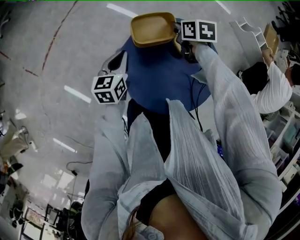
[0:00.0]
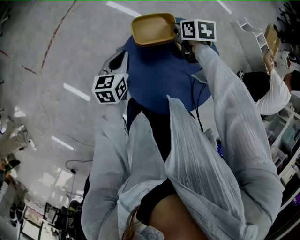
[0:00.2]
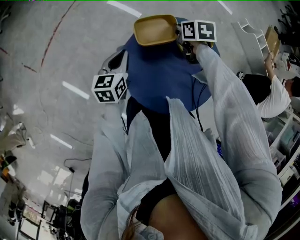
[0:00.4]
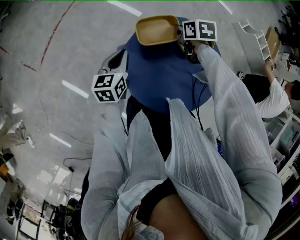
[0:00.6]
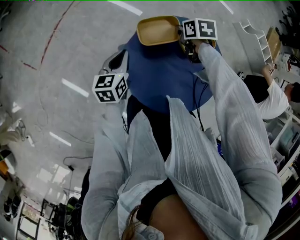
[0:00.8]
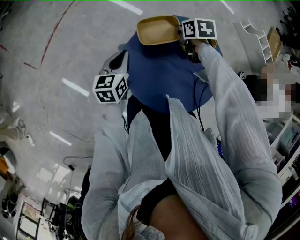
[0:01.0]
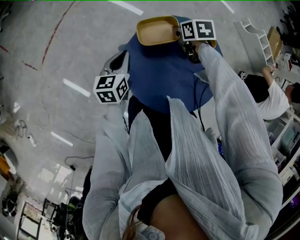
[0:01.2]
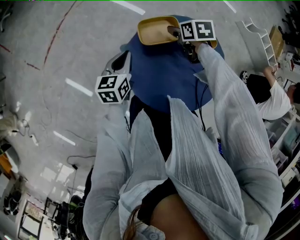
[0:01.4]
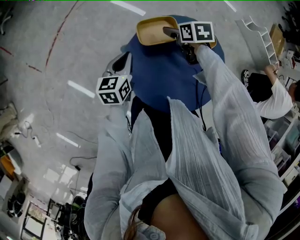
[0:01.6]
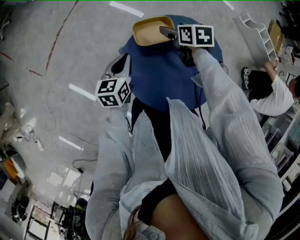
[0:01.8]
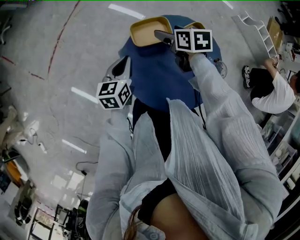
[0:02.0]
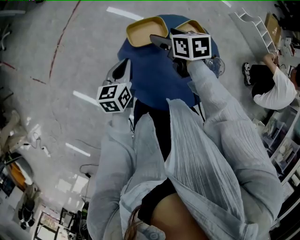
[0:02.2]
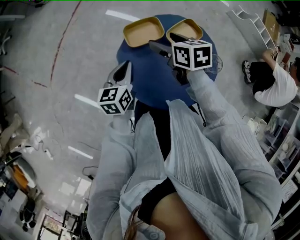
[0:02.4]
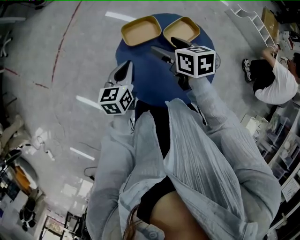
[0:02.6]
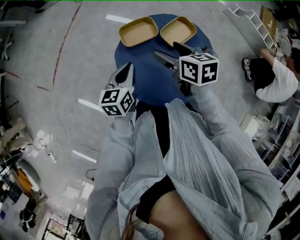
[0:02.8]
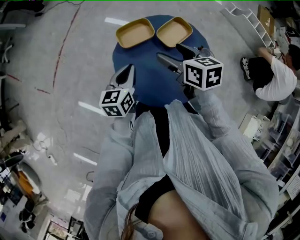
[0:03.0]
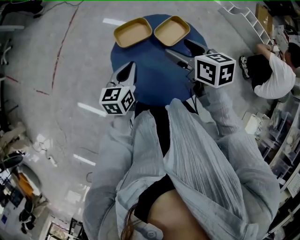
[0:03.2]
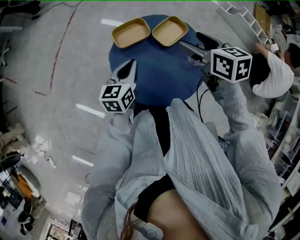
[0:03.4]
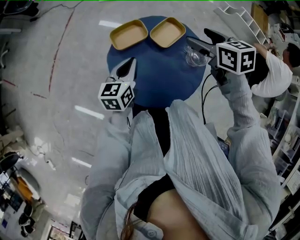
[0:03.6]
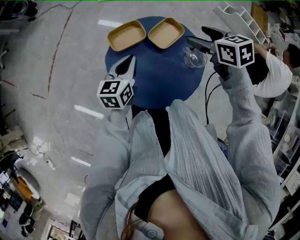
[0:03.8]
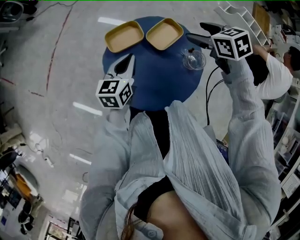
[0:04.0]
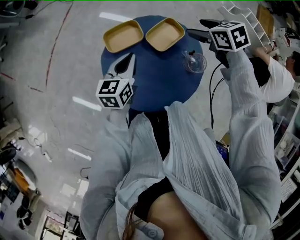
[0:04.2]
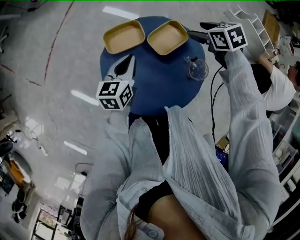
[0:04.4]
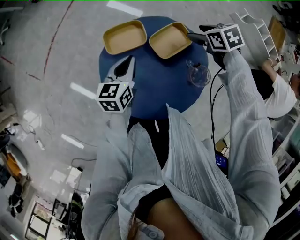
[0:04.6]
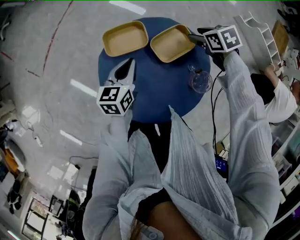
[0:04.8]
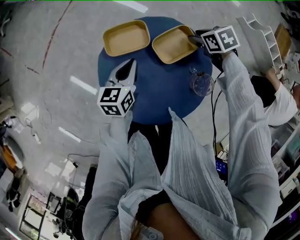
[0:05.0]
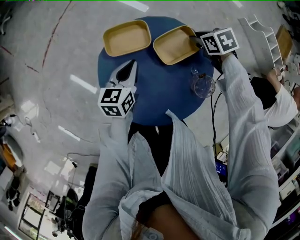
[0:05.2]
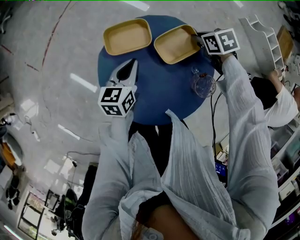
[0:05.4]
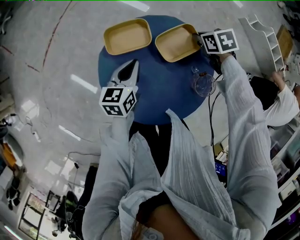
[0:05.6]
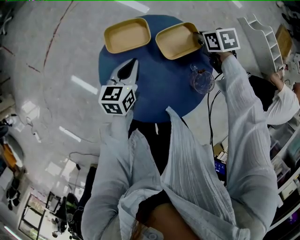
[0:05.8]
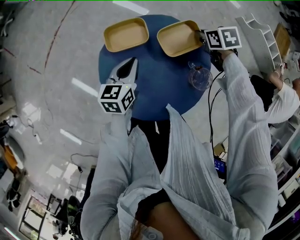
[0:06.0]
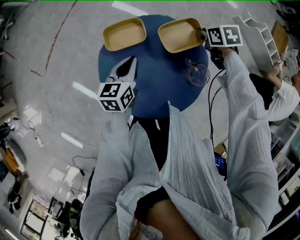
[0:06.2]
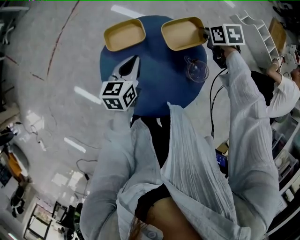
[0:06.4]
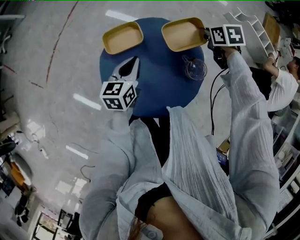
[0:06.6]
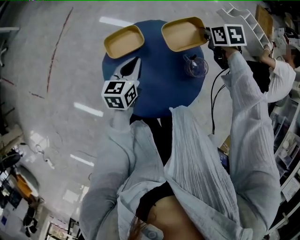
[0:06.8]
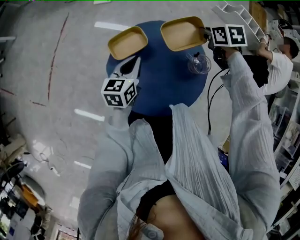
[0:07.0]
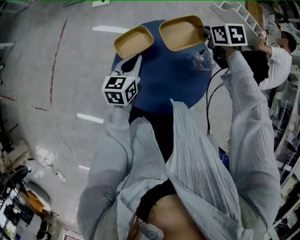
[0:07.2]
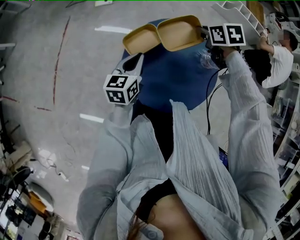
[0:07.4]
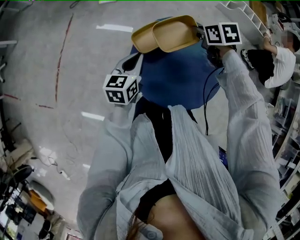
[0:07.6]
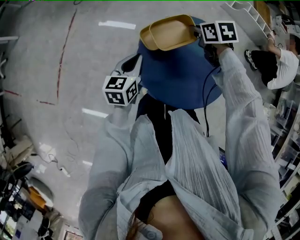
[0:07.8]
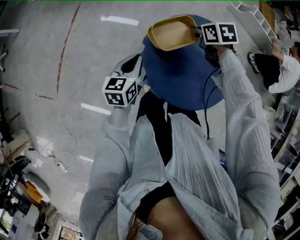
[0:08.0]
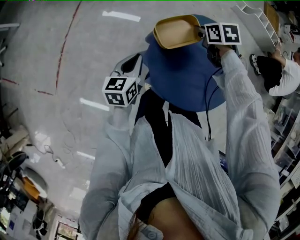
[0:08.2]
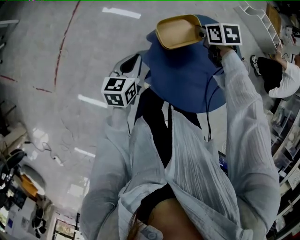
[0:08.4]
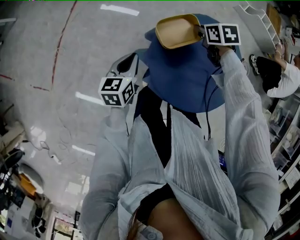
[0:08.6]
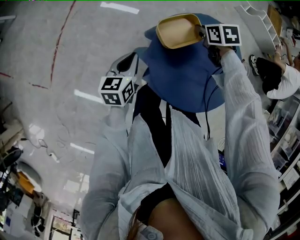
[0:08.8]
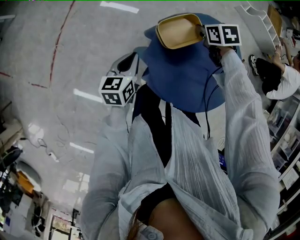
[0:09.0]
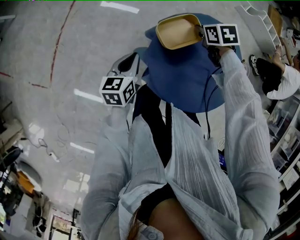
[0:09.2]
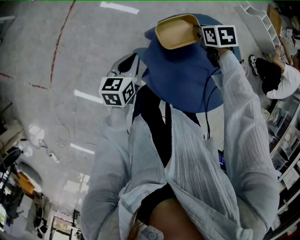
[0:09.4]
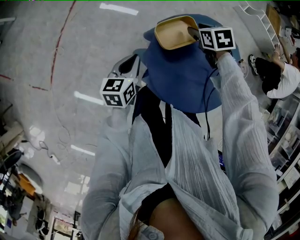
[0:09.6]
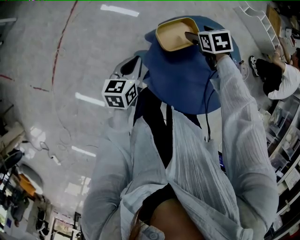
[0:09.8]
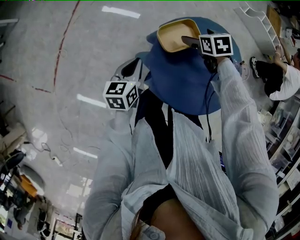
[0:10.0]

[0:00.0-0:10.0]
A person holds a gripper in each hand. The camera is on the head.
0:00.0 to 0:01.4: The right gripper opens.
0:01.4 to 0:02.8: The left gripper goes about 10 cm backward and to the right. Meanwhile the right gripper shifts approximately 20 cm backward and upward, and swivels roughly 30 degrees.
0:02.8 to 0:04.2: The left gripper moves to the right, about 10 cm, while the right gripper goes about 20 cm to the right and forward, and turns by approximately 30 degrees.
0:04.2 to 0:05.8: The left gripper moves downward, some 5 cm. Meanwhile the right gripper moves downward, about 15 cm, and closes.
0:05.8 to 0:07.2: The left gripper shifts by roughly 5 cm, and swivels some 20 degrees. Meanwhile the right gripper shifts about 10 cm upward, and turns by approximately 20 degrees.
0:07.2 to 0:08.6: The left gripper is displaced to the left by about 15 cm. The right gripper moves to the left and downward, roughly 20 cm.
0:08.6 to 0:10.0: The right gripper opens up.

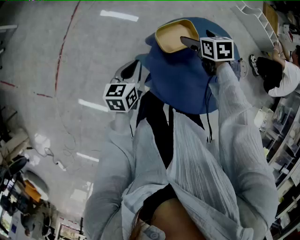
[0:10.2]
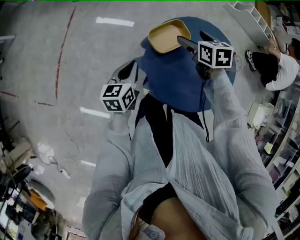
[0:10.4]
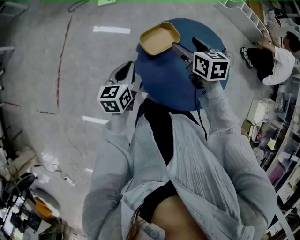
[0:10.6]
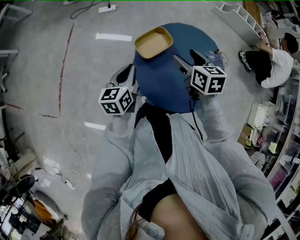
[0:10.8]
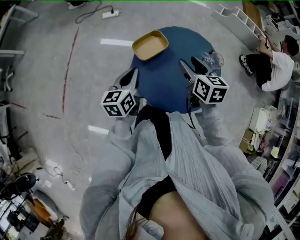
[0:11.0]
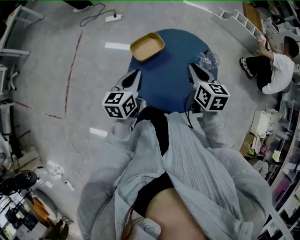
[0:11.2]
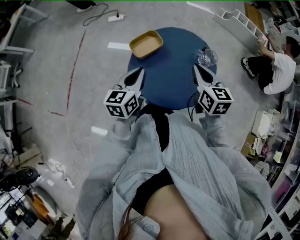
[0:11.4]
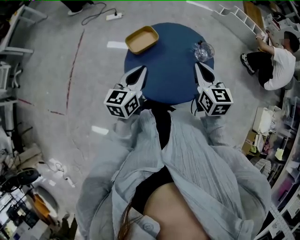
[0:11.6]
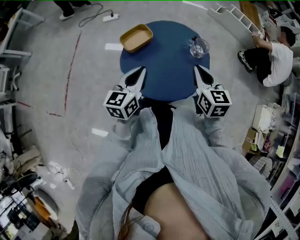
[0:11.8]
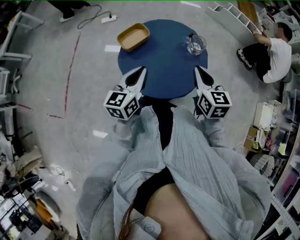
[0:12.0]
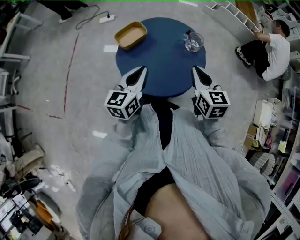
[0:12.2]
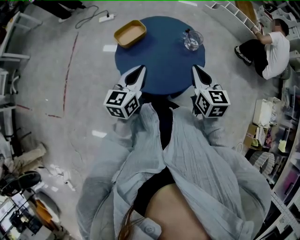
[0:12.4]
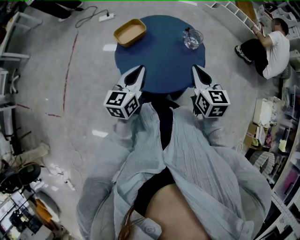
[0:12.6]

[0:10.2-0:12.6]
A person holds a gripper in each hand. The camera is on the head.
0:10.2 to 0:11.4: The left gripper goes roughly 20 cm to the right and upward. The right gripper moves backward, upward and to the right, approximately 25 cm, points its fingers approximately 30 degrees further upward, and closes up.
0:11.4 to 0:12.6: The left gripper heads to the right and backward, covering roughly 10 cm, while the right gripper moves backward and to the right, roughly 10 cm.

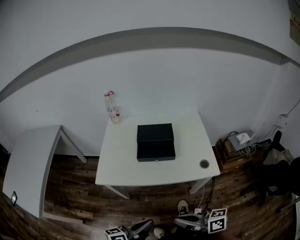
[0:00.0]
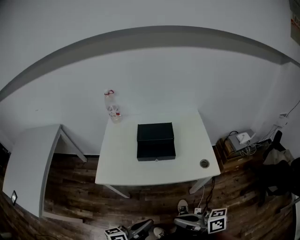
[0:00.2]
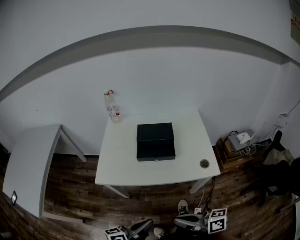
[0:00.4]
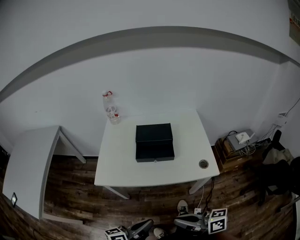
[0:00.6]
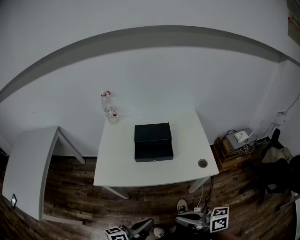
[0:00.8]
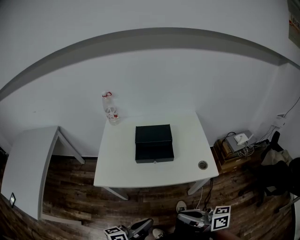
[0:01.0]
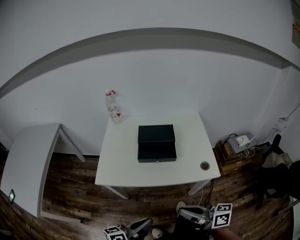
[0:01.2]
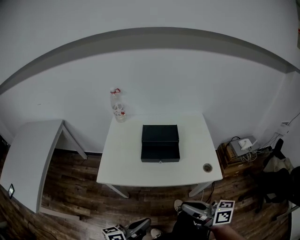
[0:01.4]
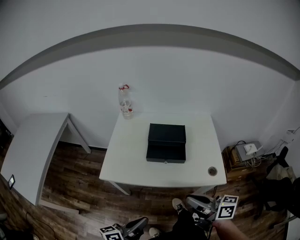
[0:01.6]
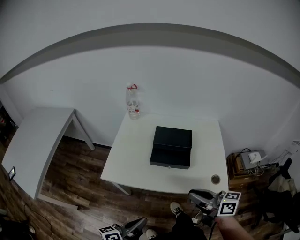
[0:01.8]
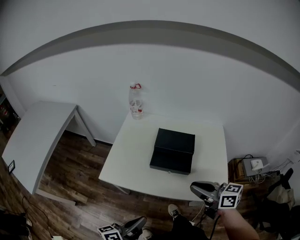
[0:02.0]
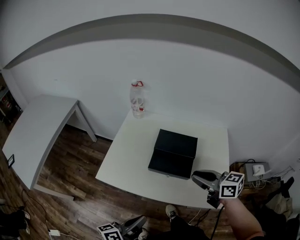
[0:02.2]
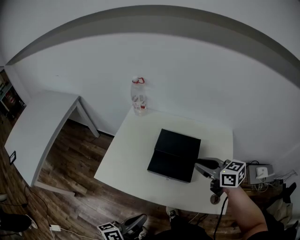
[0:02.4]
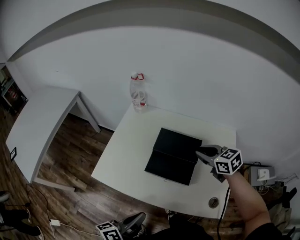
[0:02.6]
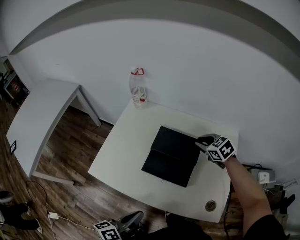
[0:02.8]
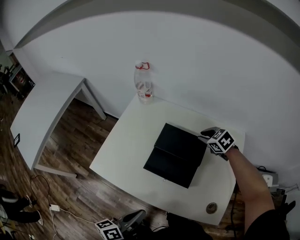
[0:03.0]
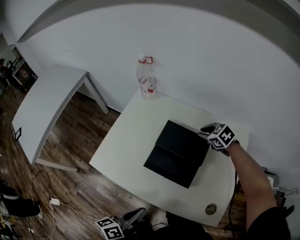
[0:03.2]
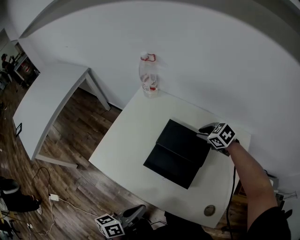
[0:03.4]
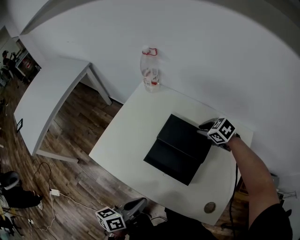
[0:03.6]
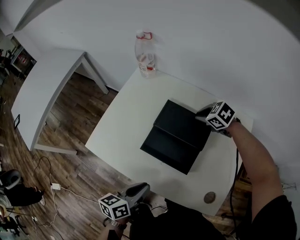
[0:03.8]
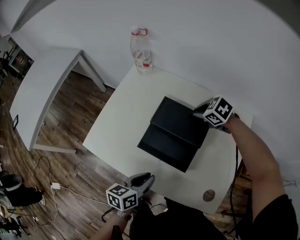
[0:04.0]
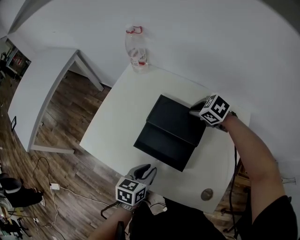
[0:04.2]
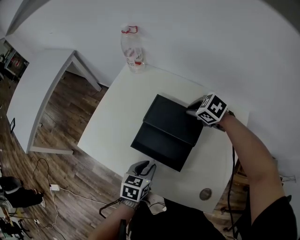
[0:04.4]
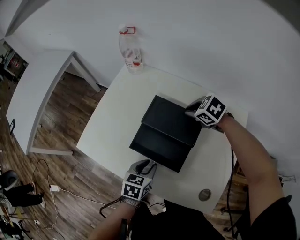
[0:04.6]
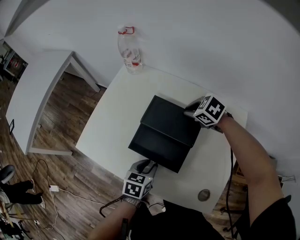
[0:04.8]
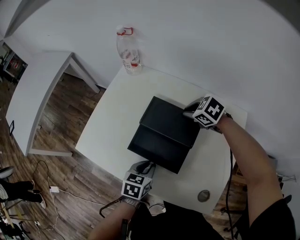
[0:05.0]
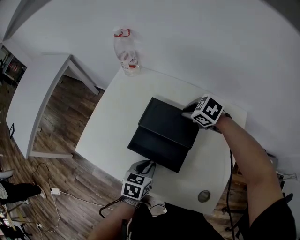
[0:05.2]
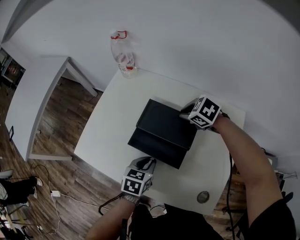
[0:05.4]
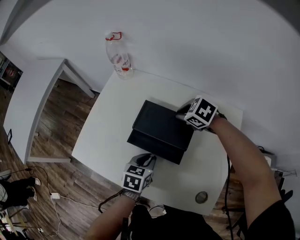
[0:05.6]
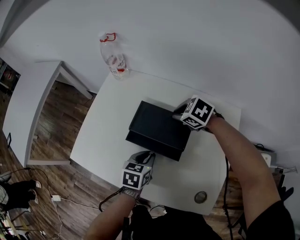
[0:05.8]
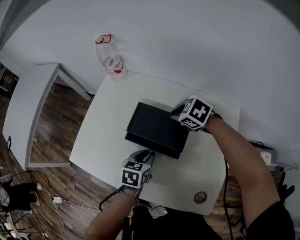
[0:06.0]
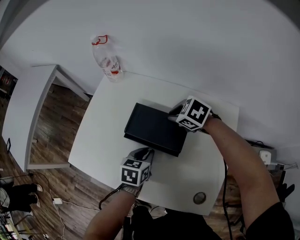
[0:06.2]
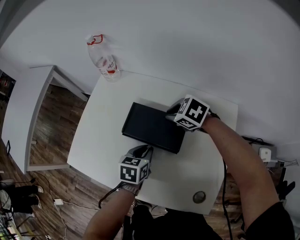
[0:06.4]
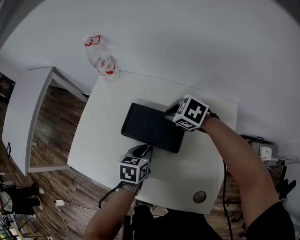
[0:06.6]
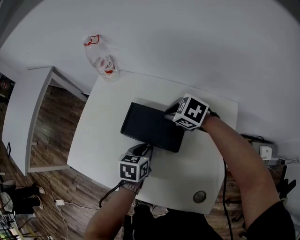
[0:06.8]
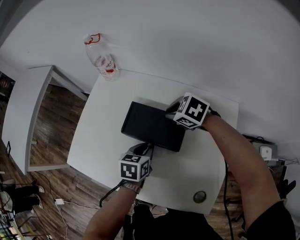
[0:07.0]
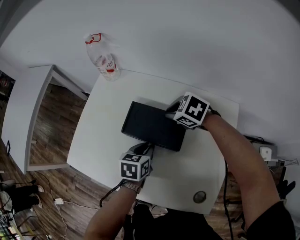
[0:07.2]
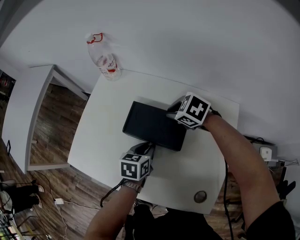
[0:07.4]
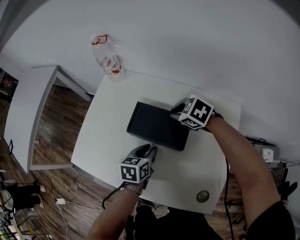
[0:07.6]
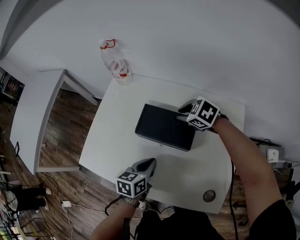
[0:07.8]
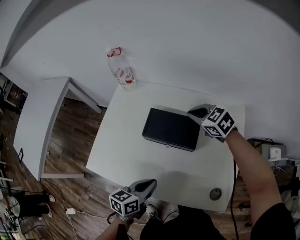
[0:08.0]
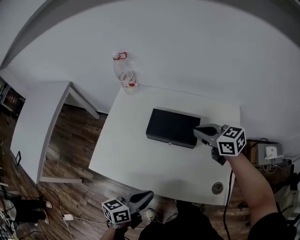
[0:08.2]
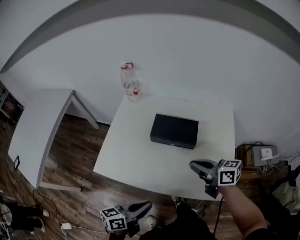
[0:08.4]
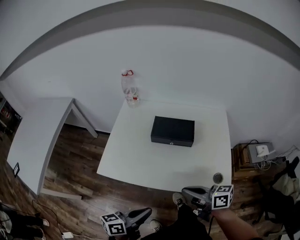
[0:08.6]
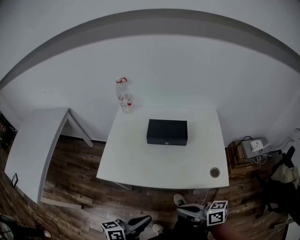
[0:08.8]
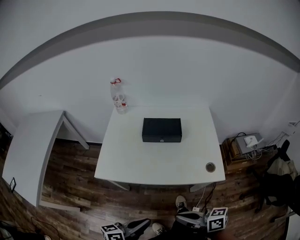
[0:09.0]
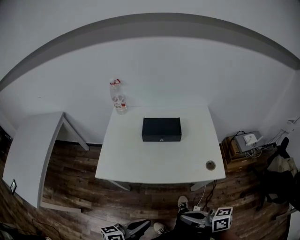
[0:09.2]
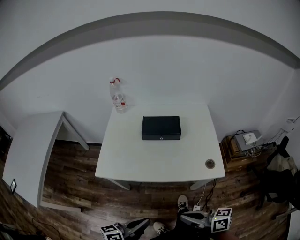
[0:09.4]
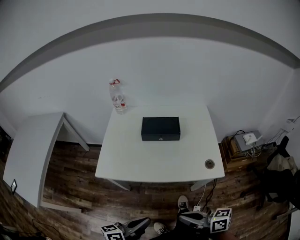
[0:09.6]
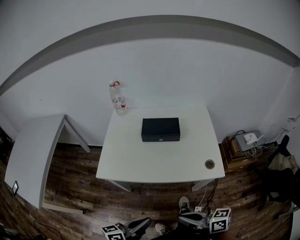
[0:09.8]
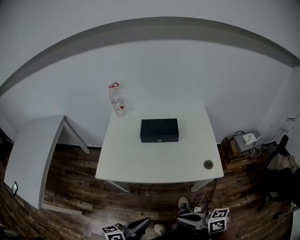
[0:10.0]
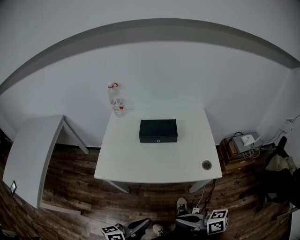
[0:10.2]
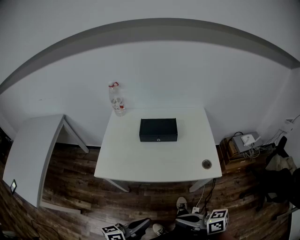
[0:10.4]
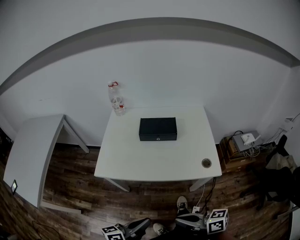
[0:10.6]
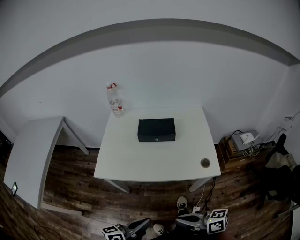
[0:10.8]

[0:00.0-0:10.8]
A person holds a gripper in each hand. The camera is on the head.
0:00.0 to 0:01.6: The right gripper heads forward, covering approximately 10 cm.
0:01.6 to 0:03.0: The left gripper shifts some 20 cm forward and to the right, and changes its angle by approximately 30 degrees, while the right gripper goes some 50 cm forward, and points its fingers roughly 50 degrees further downward.
0:03.0 to 0:04.6: The left gripper is displaced downward, forward and to the right by approximately 20 cm, tips its fingers downward by some 30 degrees, and opens up.
0:04.6 to 0:06.2: The left gripper shifts some 10 cm forward and to the right.
0:06.2 to 0:07.8: The left gripper changes place by some 5 cm.
0:07.8 to 0:09.2: The right gripper shifts by some 60 cm, and tilts its fingers roughly 50 degrees upward. Meanwhile the left gripper changes place by approximately 40 cm, and points its fingers about 30 degrees further upward.
0:09.2 to 0:10.8: The grippers make only small movements.
